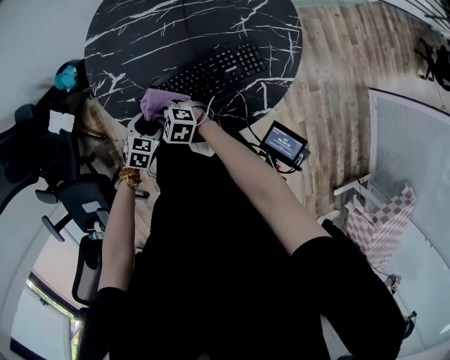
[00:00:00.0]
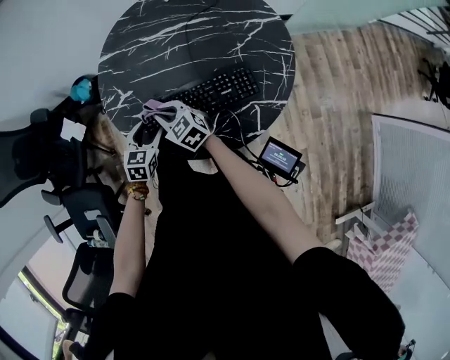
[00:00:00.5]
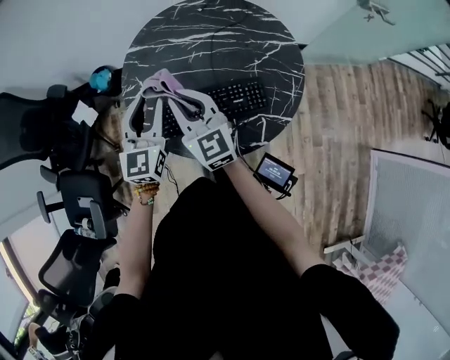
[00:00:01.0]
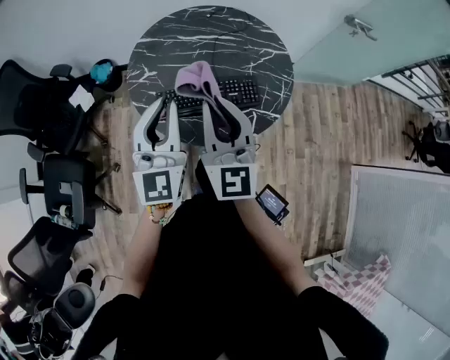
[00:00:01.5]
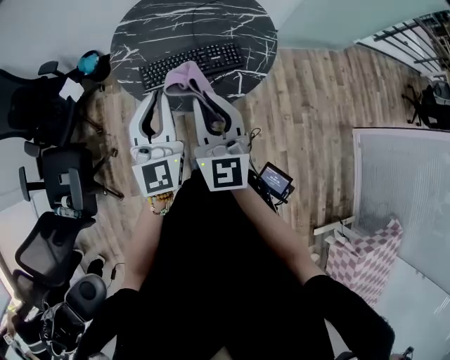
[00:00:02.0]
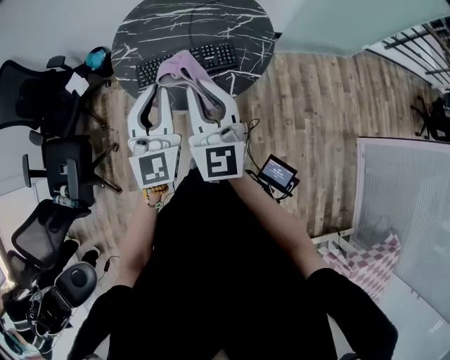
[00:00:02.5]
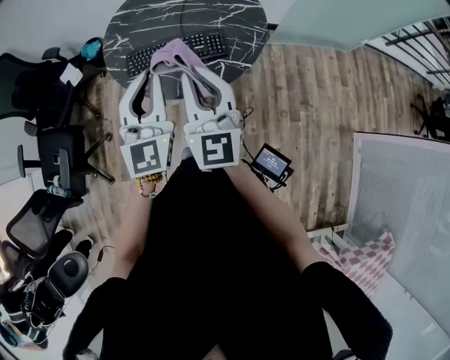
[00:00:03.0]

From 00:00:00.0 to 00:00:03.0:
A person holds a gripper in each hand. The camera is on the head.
From 00:00:00.0 to 00:00:01.5: The two grippers go some 40 cm upward. The right gripper tips its fingers upward by roughly 60 degrees; the left gripper angles its fingers upward, by approximately 70 degrees, and closes up.
From 00:00:01.5 to 00:00:03.0: The grippers both shift to the right and backward by approximately 15 cm.

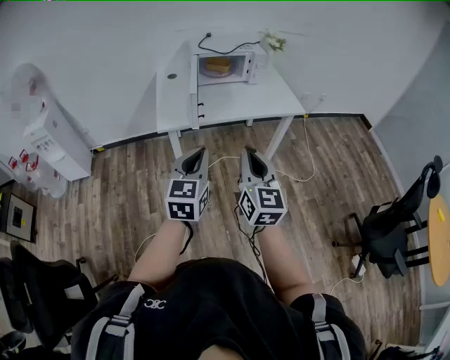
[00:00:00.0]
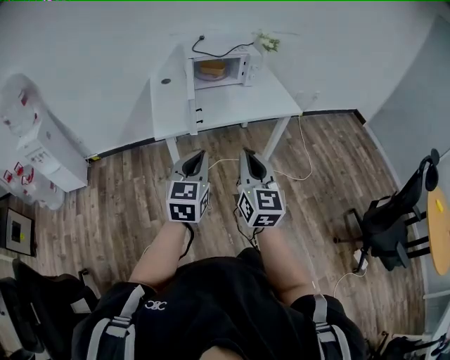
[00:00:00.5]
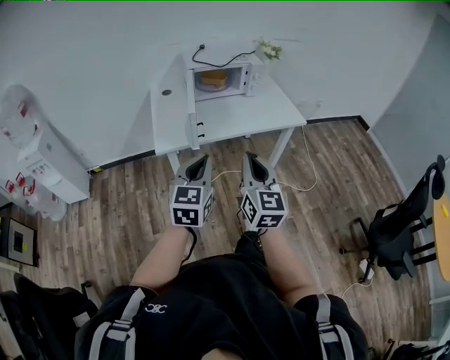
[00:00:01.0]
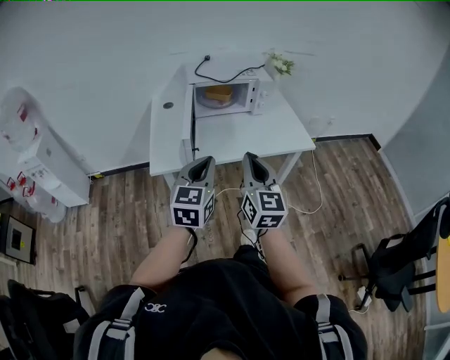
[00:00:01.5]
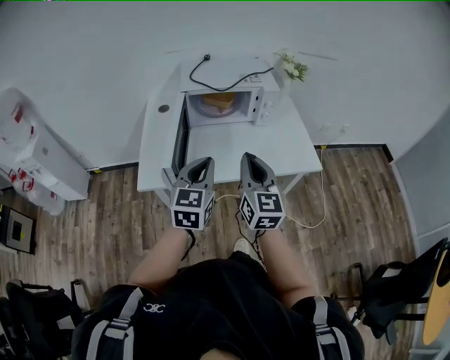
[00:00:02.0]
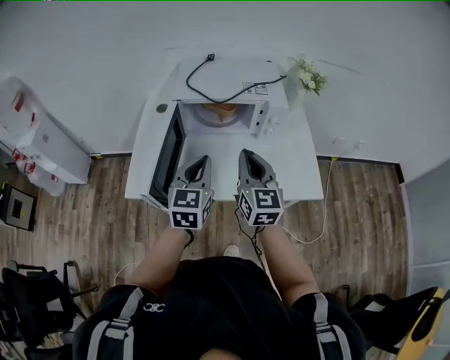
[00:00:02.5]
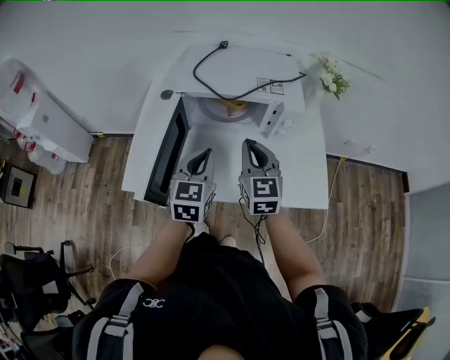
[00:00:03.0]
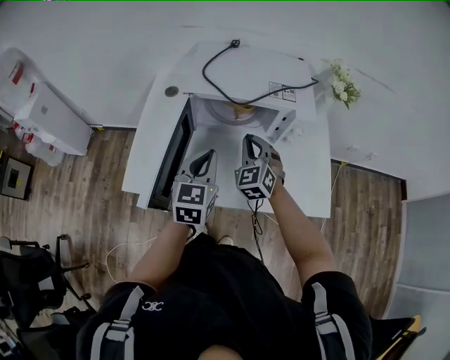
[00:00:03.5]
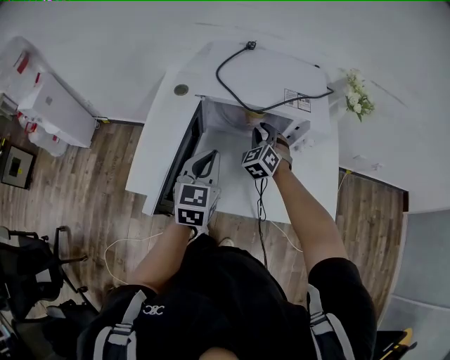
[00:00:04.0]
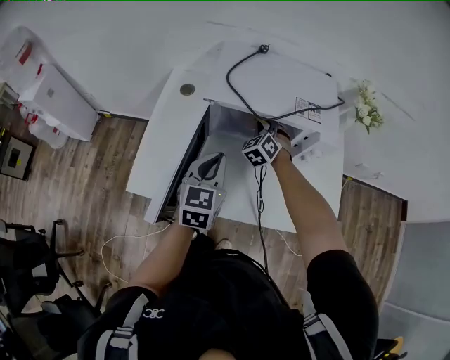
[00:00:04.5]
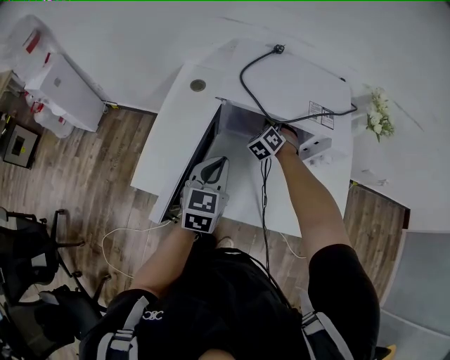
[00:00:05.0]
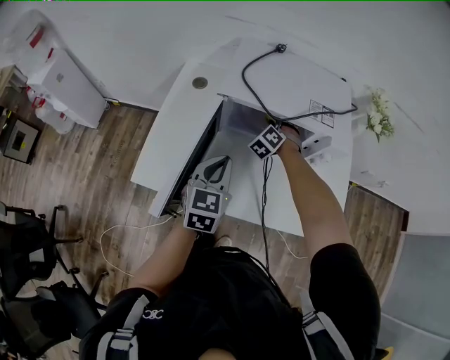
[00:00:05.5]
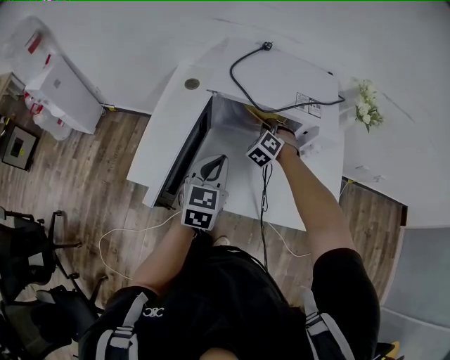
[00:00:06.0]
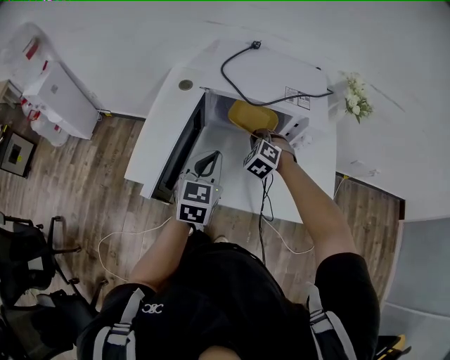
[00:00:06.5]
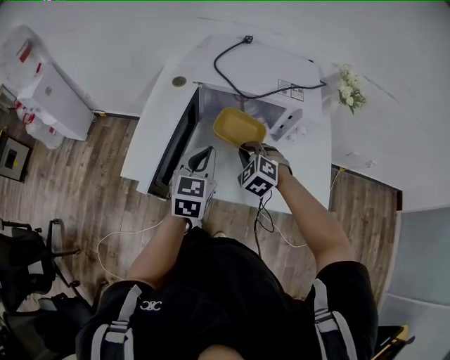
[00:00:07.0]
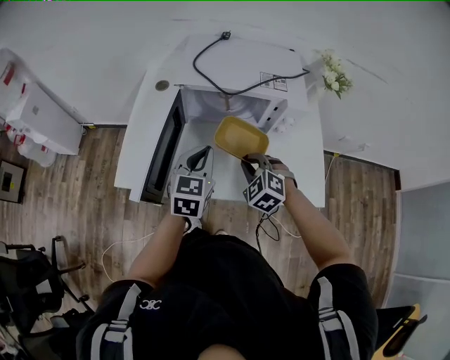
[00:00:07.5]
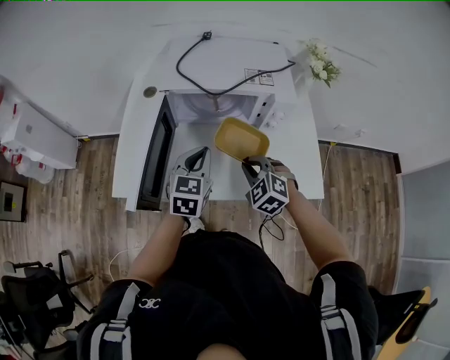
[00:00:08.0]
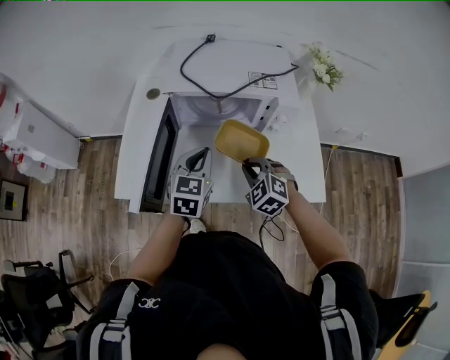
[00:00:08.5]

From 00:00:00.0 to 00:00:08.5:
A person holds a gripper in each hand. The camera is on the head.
From 00:00:00.0 to 00:00:02.0: Both grippers are carried forward, approximately 40 cm.
From 00:00:02.0 to 00:00:04.0: The left gripper heads forward, covering approximately 25 cm. Meanwhile the right gripper goes about 50 cm forward and downward, rotates around the line of its fingers by approximately 50 degrees, counterclockwise from behind, and opens its fingers.
From 00:00:04.0 to 00:00:06.5: The right gripper shifts about 5 cm backward, and swivels approximately 30 degrees.
From 00:00:06.5 to 00:00:08.5: The right gripper shifts some 15 cm backward; the left gripper shifts by approximately 5 cm.

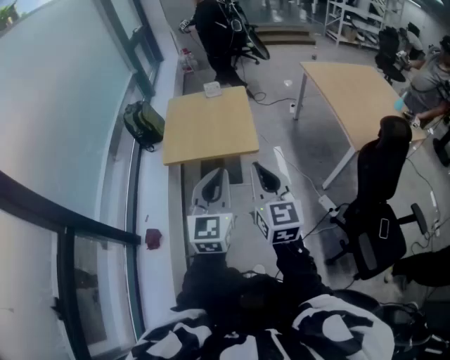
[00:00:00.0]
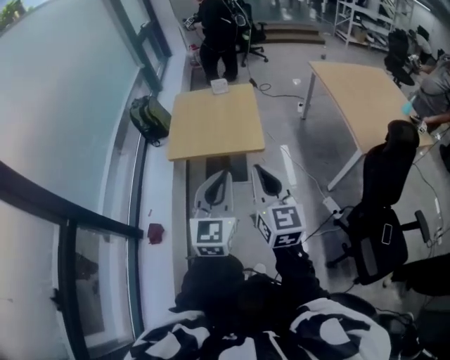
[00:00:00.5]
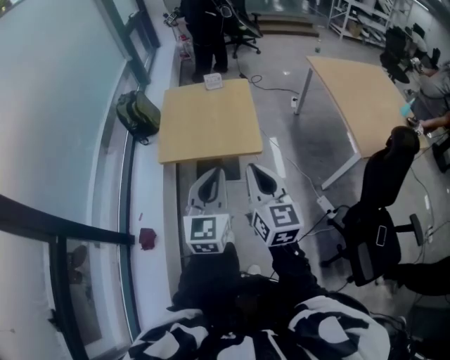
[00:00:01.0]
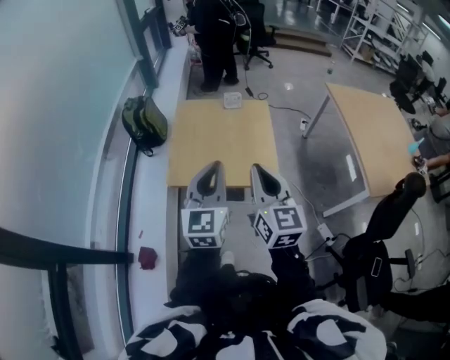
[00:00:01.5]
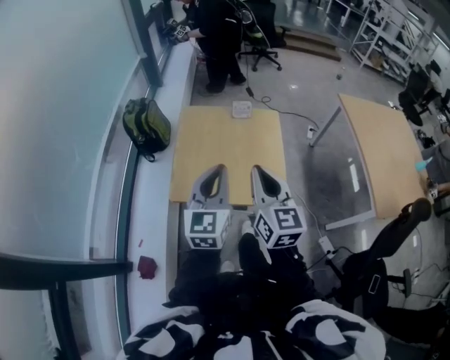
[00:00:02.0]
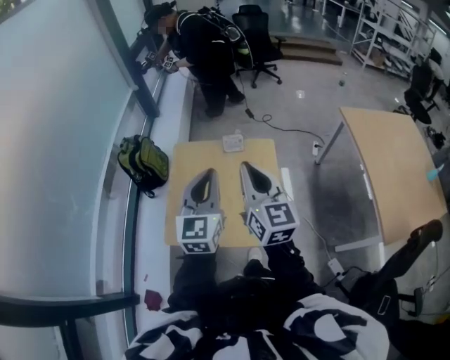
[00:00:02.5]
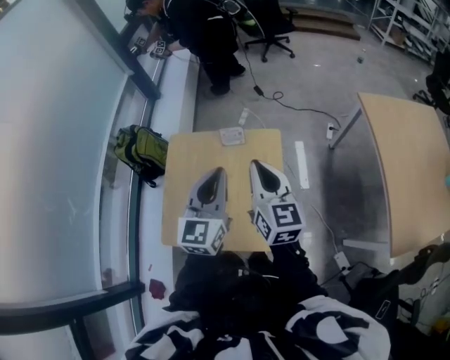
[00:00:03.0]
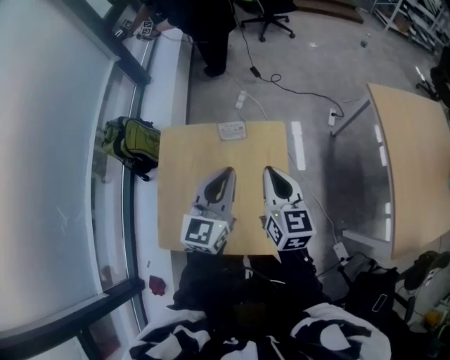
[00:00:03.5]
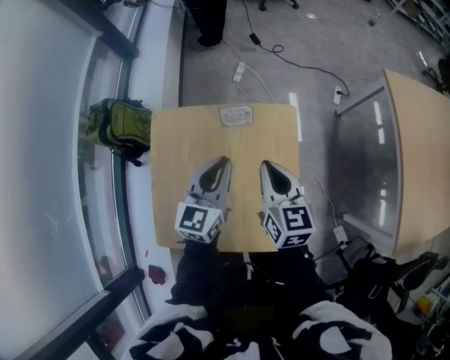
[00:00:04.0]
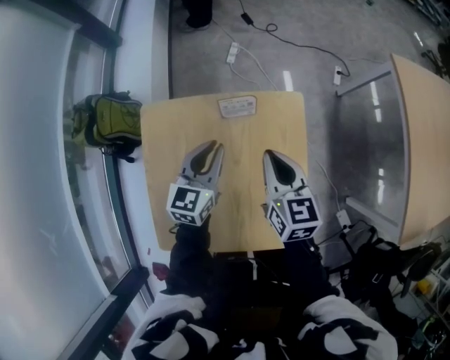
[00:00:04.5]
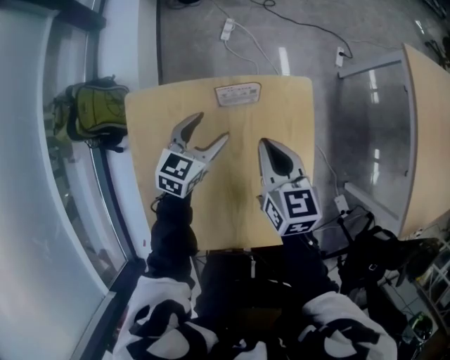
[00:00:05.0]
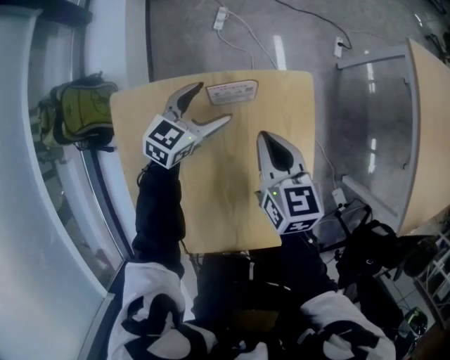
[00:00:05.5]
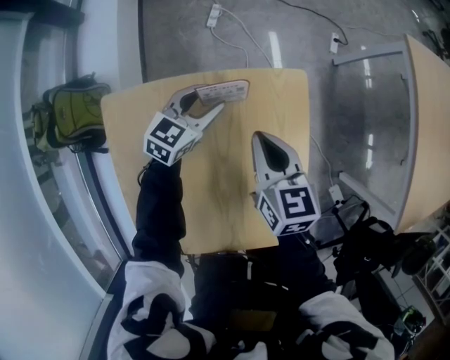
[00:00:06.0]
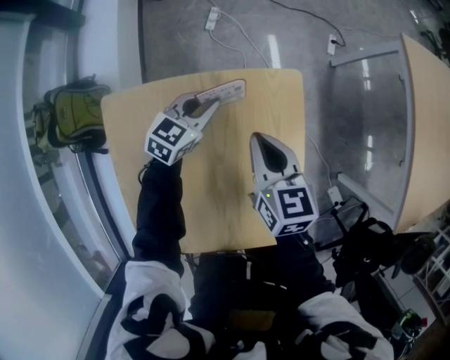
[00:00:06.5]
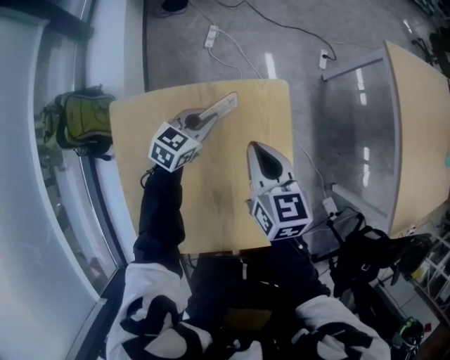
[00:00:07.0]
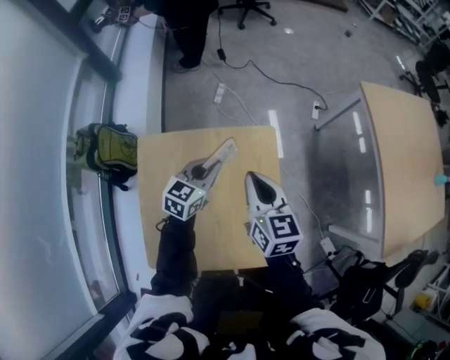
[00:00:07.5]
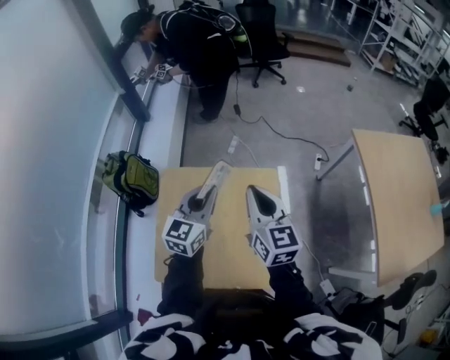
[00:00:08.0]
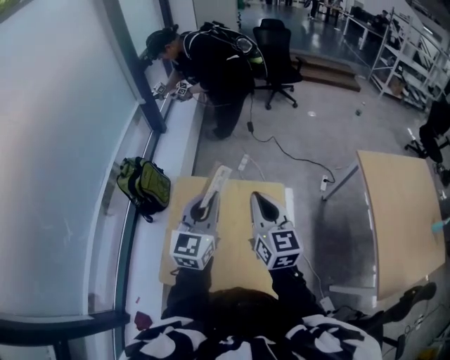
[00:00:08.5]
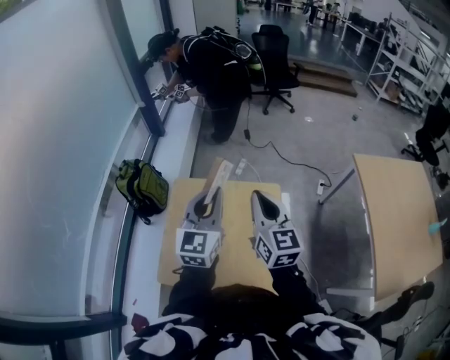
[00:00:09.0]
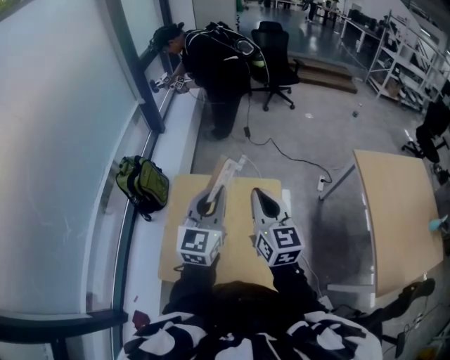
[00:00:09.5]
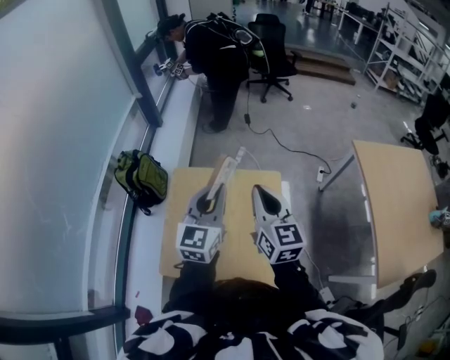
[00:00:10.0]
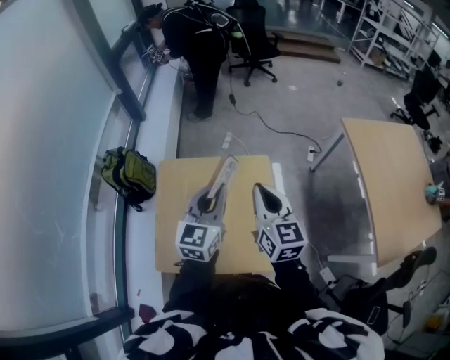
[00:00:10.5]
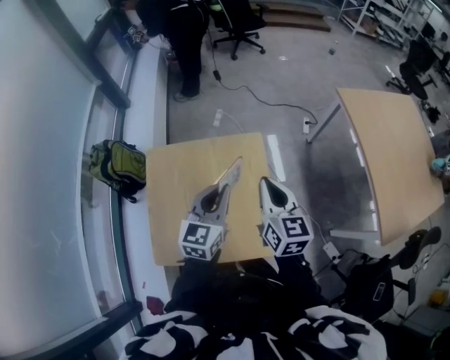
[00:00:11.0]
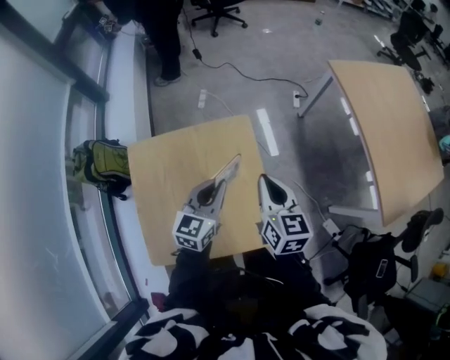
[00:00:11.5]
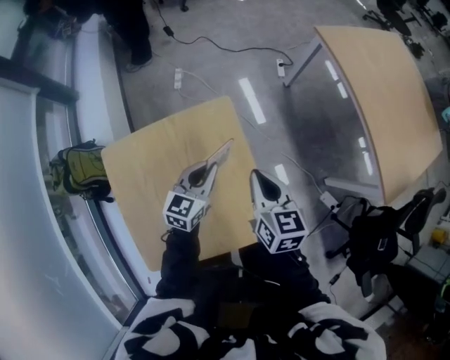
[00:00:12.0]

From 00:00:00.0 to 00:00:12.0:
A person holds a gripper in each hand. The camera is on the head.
From 00:00:00.0 to 00:00:02.0: Both grippers travel together forward, some 35 cm.
From 00:00:02.0 to 00:00:04.0: The two grippers go roughly 40 cm forward and downward. The right gripper swivels about 20 degrees.
From 00:00:04.0 to 00:00:06.0: The left gripper heads downward and forward, covering some 25 cm, changes its angle by roughly 30 degrees, and opens its fingers. Meanwhile the right gripper travels downward and forward by some 15 cm.
From 00:00:06.0 to 00:00:08.0: The left gripper heads upward and backward, covering some 35 cm, rotates about 30 degrees, and closes its fingers; the right gripper goes approximately 25 cm upward, and changes its angle by approximately 30 degrees.
From 00:00:08.0 to 00:00:10.0: The right gripper changes place by approximately 5 cm. Meanwhile the left gripper heads upward and backward, covering some 10 cm.
From 00:00:10.0 to 00:00:12.0: Both grippers move downward, about 25 cm. The left gripper rotates roughly 40 degrees, while the right gripper changes its angle by approximately 30 degrees.

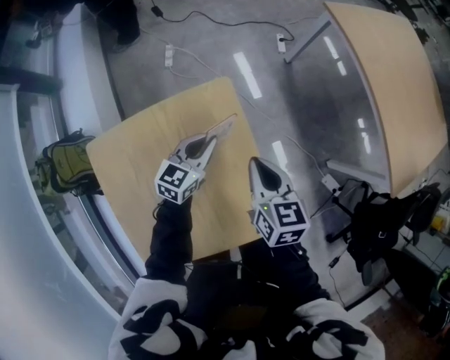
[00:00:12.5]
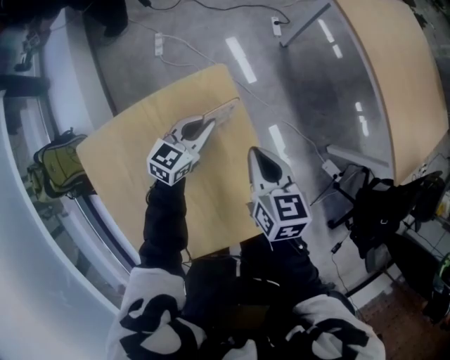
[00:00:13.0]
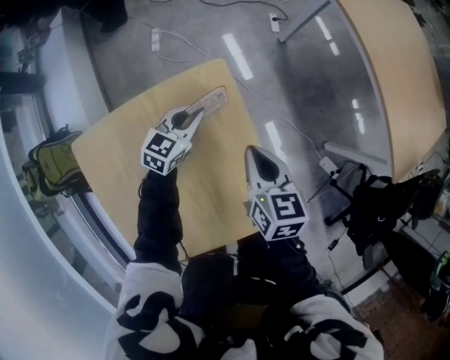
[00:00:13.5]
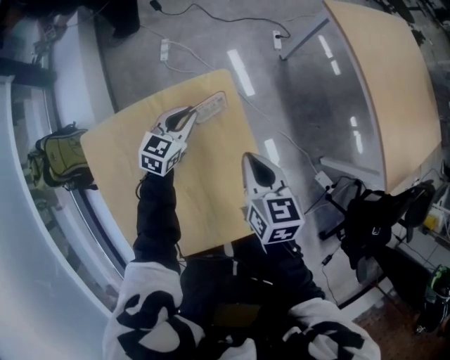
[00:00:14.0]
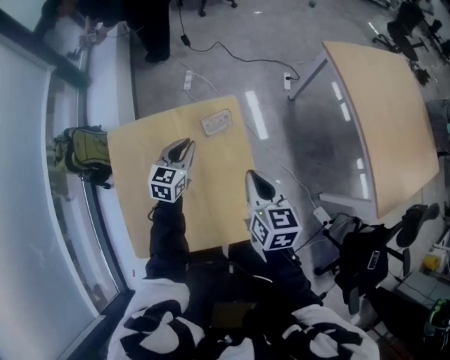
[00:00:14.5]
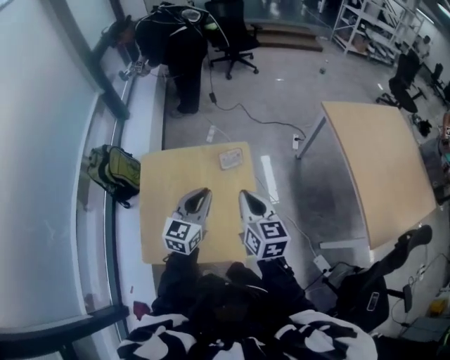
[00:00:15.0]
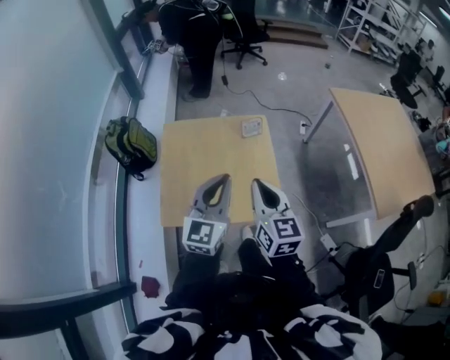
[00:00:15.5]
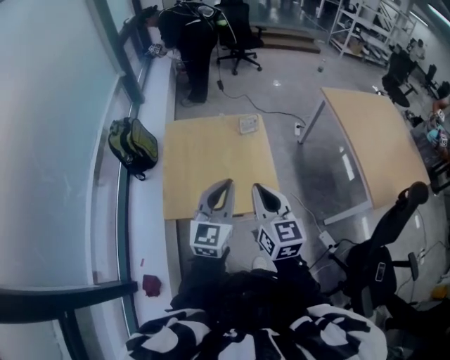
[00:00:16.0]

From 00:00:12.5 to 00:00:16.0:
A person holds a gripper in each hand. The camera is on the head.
From 00:00:12.5 to 00:00:14.5: The left gripper goes about 5 cm to the left, and rotates some 20 degrees. Meanwhile the right gripper goes approximately 5 cm backward.
From 00:00:14.5 to 00:00:16.0: The two grippers go about 40 cm backward and upward. The left gripper turns by roughly 30 degrees, while the right gripper changes its angle by approximately 20 degrees.
